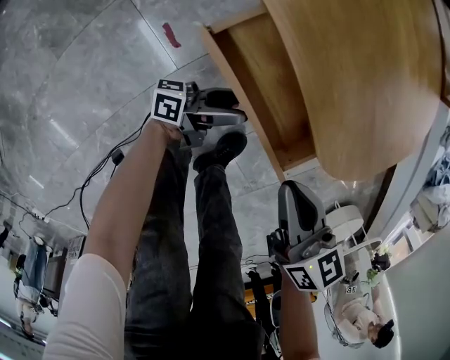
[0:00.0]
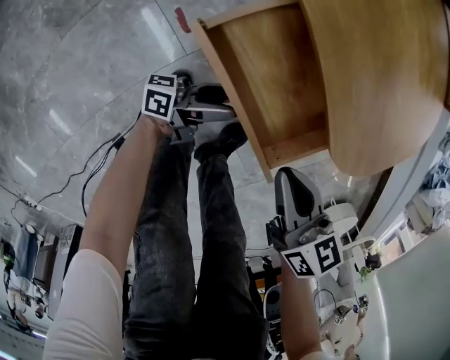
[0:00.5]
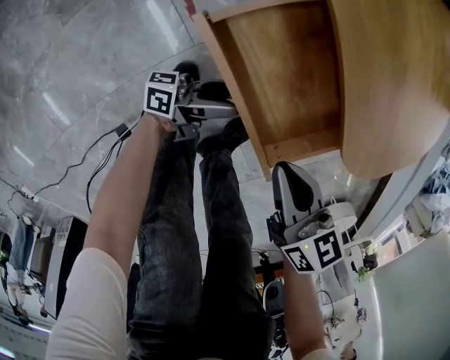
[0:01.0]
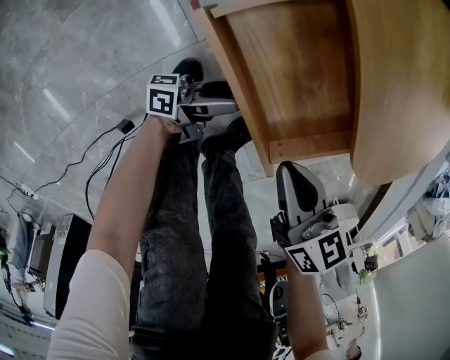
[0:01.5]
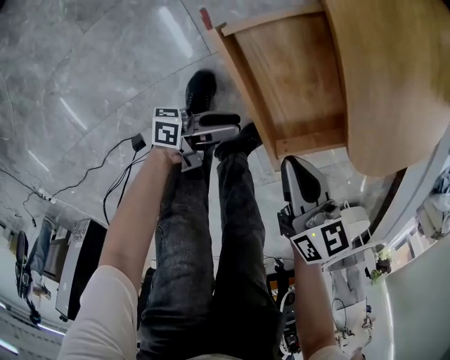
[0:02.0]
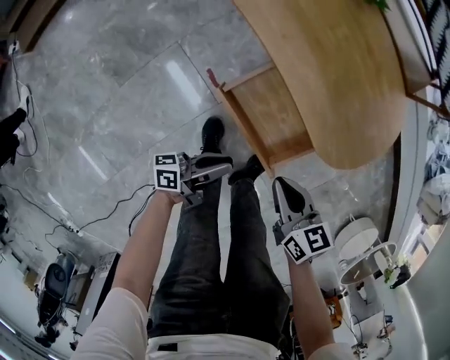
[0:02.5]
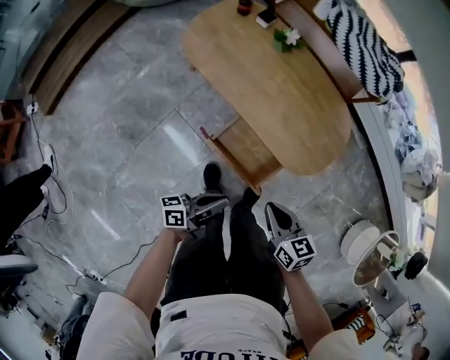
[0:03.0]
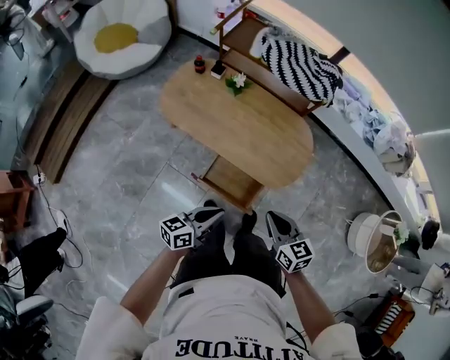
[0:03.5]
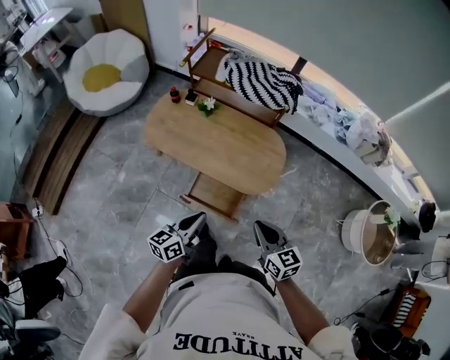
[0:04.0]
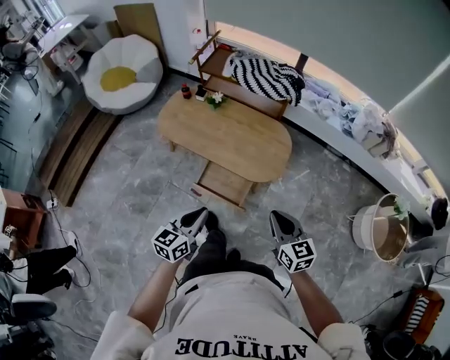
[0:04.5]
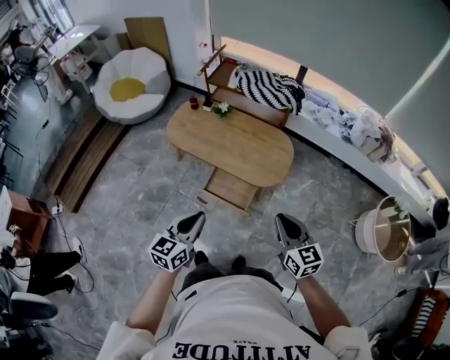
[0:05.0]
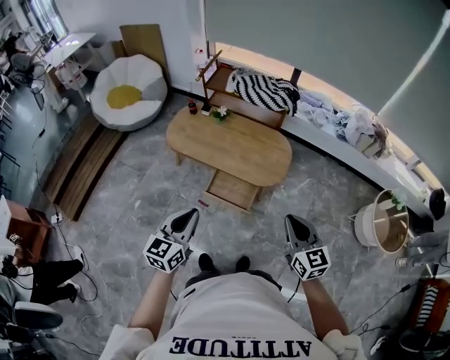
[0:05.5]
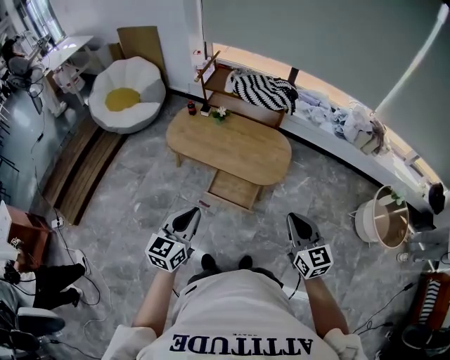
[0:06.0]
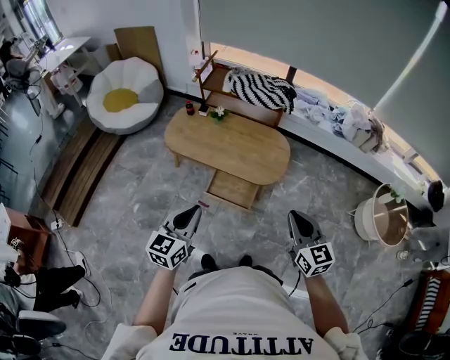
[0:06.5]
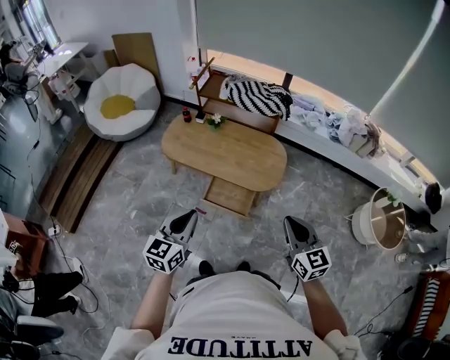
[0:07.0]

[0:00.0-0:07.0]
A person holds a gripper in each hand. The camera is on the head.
0:00.0 to 0:02.0: The left gripper is displaced backward and to the left by about 15 cm, and closes up, while the right gripper moves to the left, approximately 5 cm.
0:02.0 to 0:03.5: The grippers both shift upward by approximately 50 cm. The right gripper rotates some 30 degrees. Meanwhile the left gripper rotates around the line of its fingers by about 40 degrees, clockwise from behind, and closes.
0:03.5 to 0:05.0: The left gripper goes about 25 cm backward and upward, and swivels about 40 degrees, while the right gripper is displaced backward, upward and to the right by approximately 30 cm.
0:05.0 to 0:07.0: The left gripper goes approximately 5 cm to the left, while the right gripper moves roughly 5 cm.

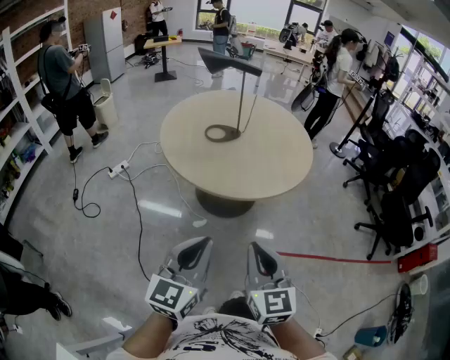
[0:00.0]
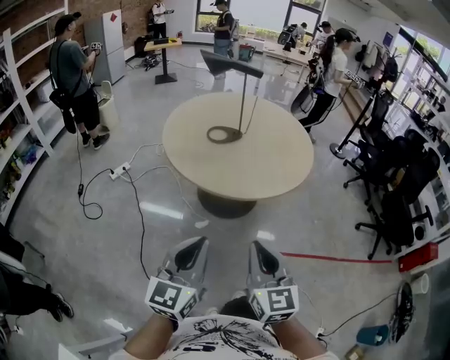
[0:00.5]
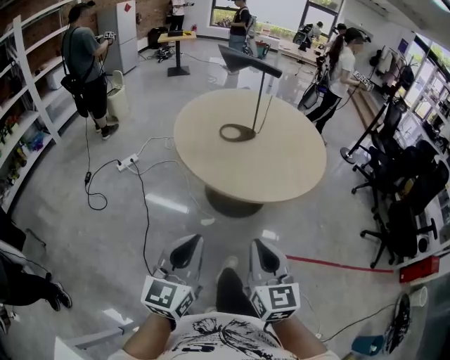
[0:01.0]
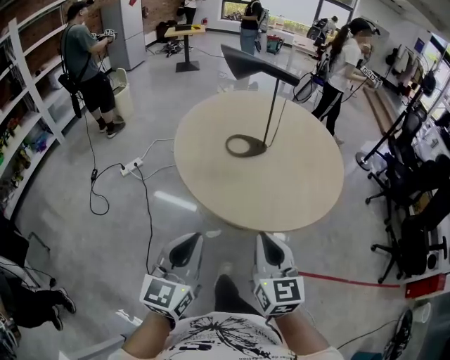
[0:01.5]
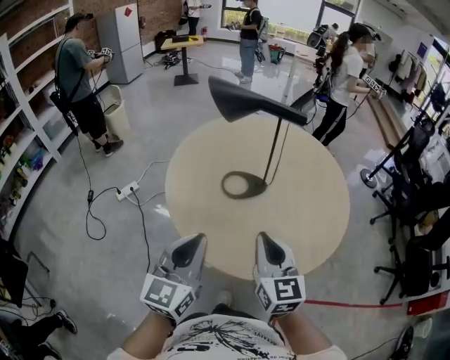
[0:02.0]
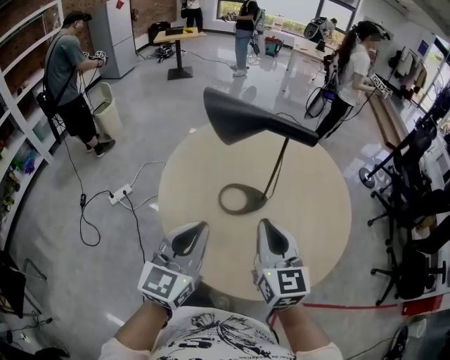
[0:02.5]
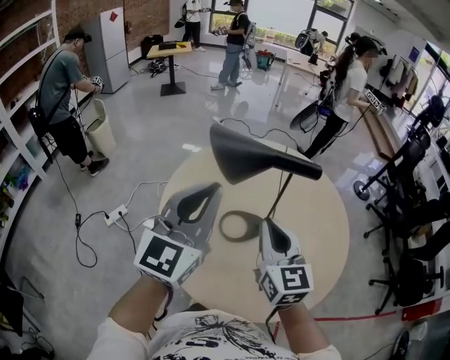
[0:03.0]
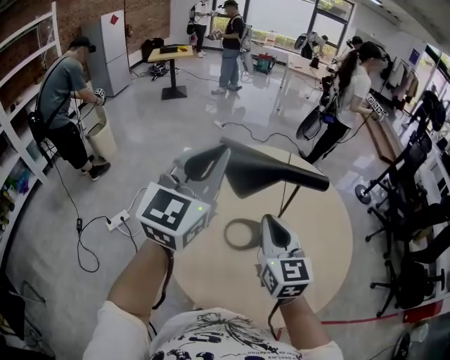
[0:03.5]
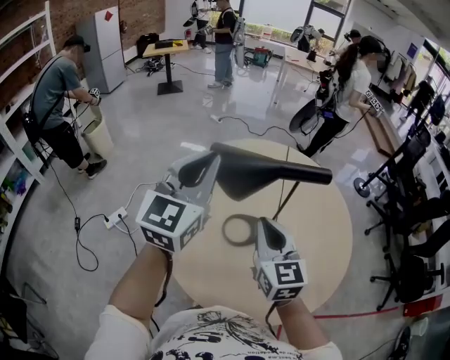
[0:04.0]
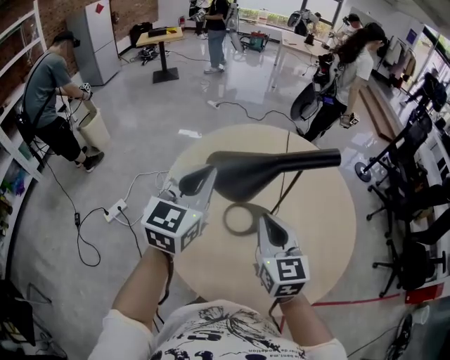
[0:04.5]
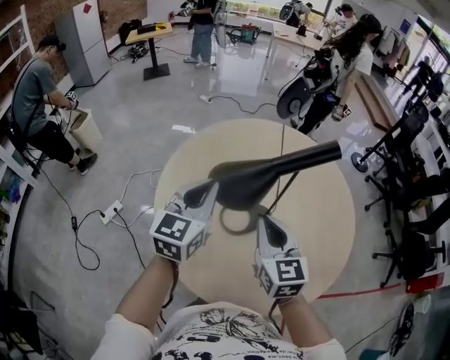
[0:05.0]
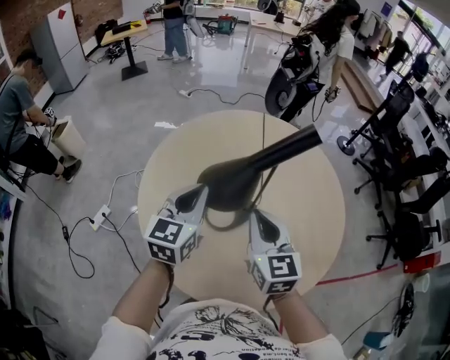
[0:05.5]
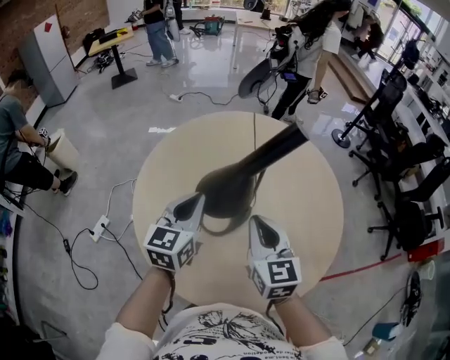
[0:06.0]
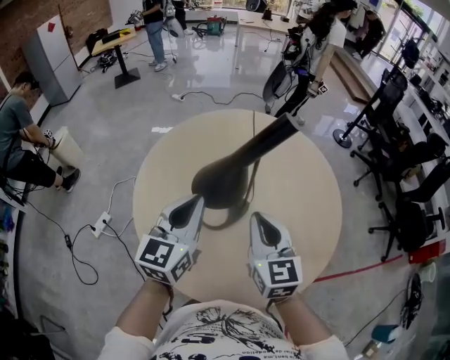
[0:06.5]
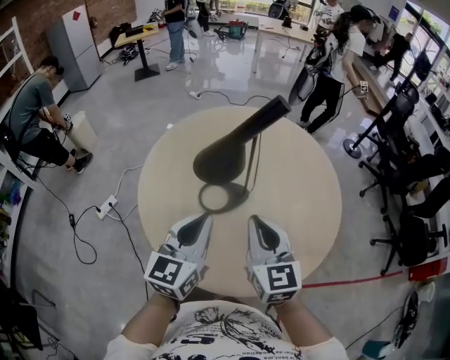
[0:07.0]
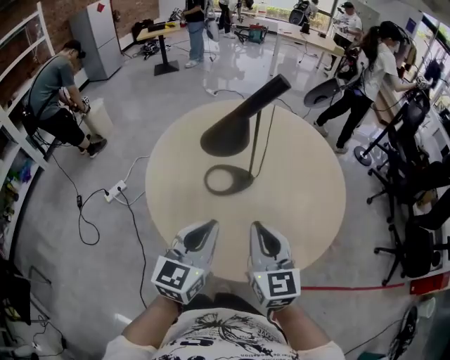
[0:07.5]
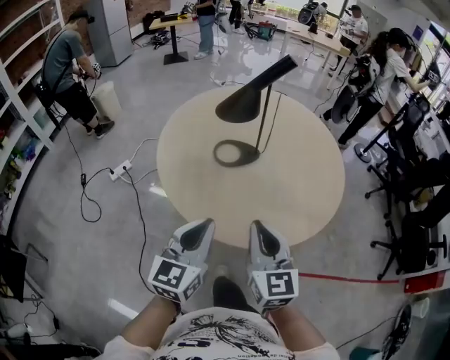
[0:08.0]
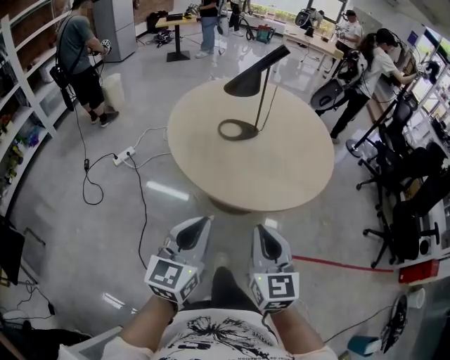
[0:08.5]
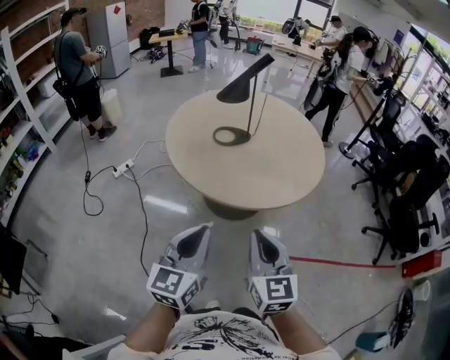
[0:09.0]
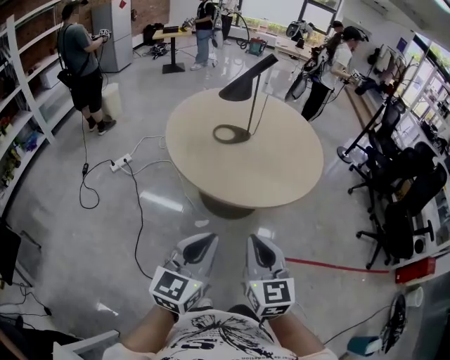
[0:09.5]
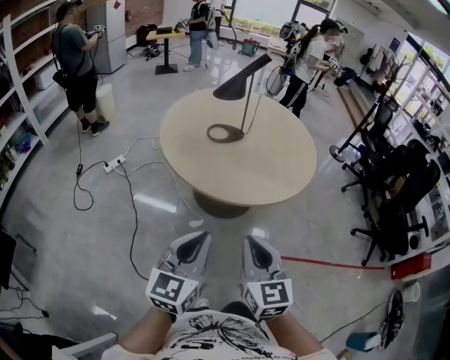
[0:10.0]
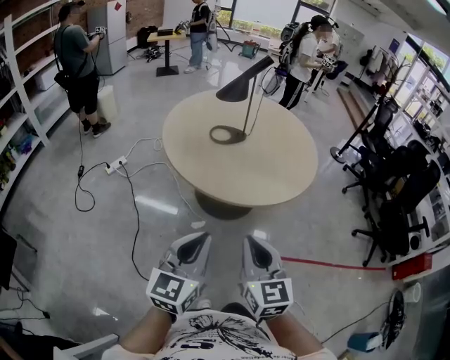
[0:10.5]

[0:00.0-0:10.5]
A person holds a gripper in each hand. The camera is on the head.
0:00.0 to 0:02.0: Both grippers move forward, about 30 cm.
0:02.0 to 0:04.0: The right gripper heads forward, covering roughly 20 cm. Meanwhile the left gripper travels forward and upward by roughly 35 cm.
0:04.0 to 0:06.5: The left gripper heads downward and to the right, covering about 15 cm. The right gripper shifts roughly 5 cm to the right.
0:06.5 to 0:08.5: Both grippers travel together backward, about 40 cm.
0:08.5 to 0:10.5: The grippers both shift backward by approximately 10 cm.

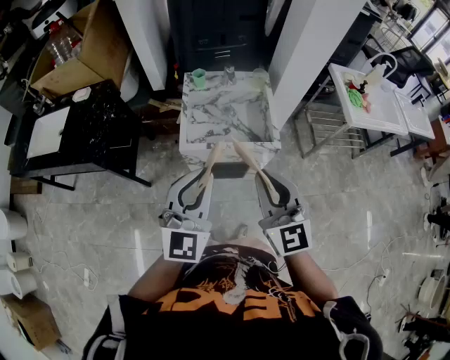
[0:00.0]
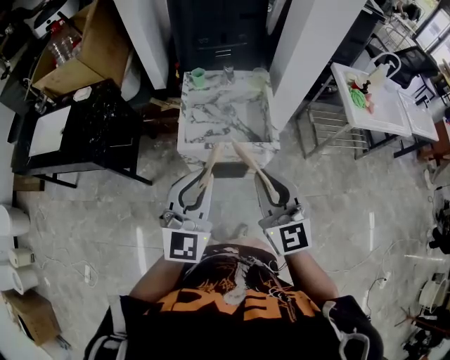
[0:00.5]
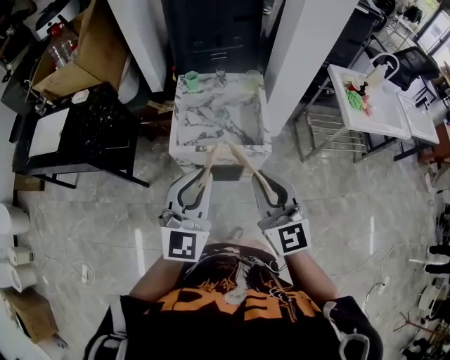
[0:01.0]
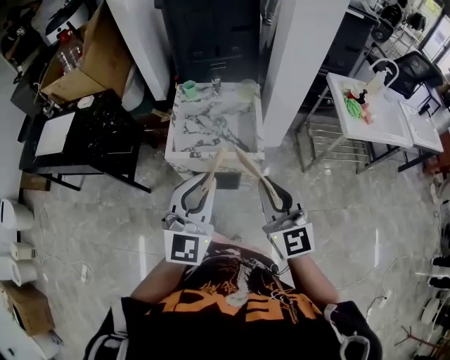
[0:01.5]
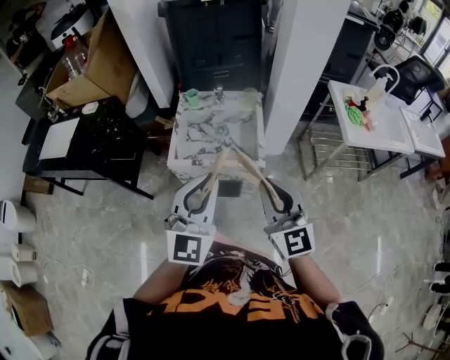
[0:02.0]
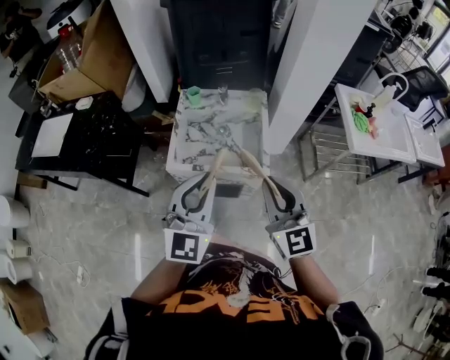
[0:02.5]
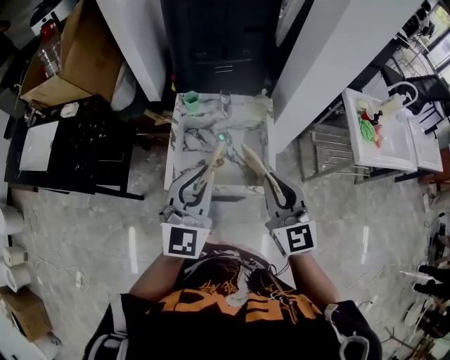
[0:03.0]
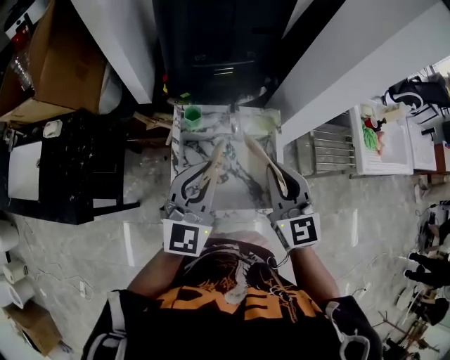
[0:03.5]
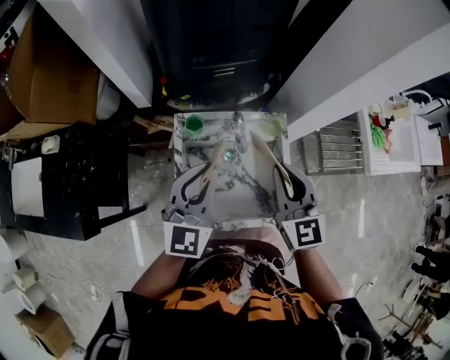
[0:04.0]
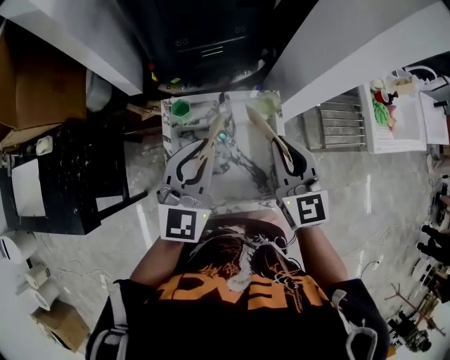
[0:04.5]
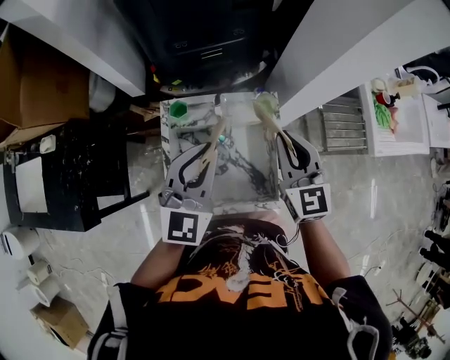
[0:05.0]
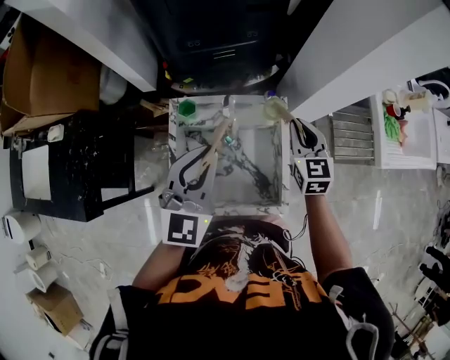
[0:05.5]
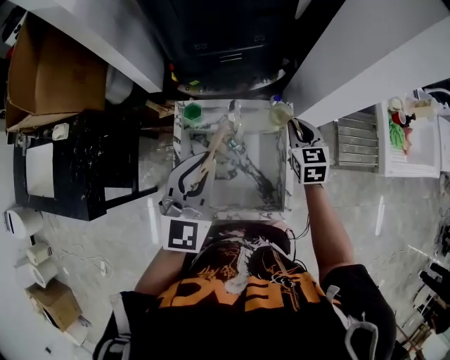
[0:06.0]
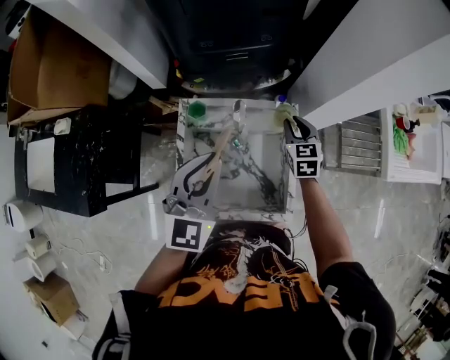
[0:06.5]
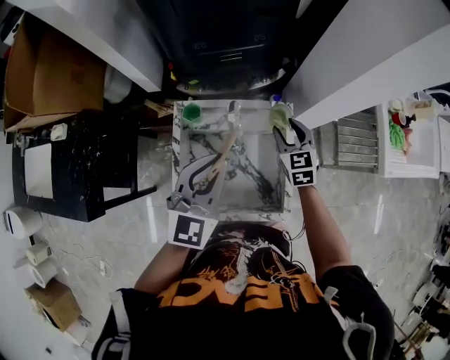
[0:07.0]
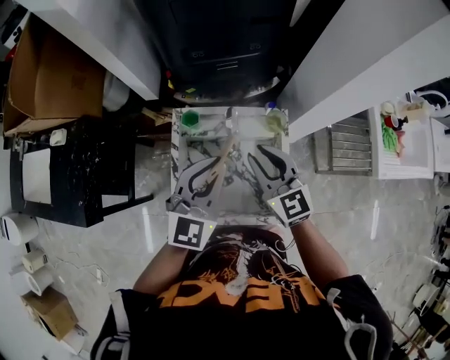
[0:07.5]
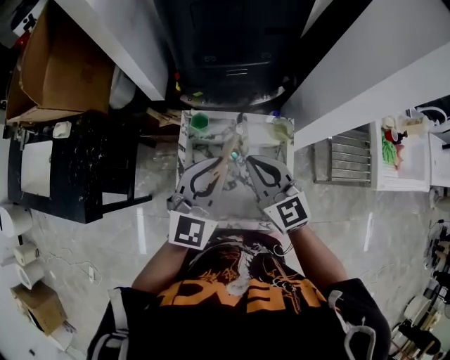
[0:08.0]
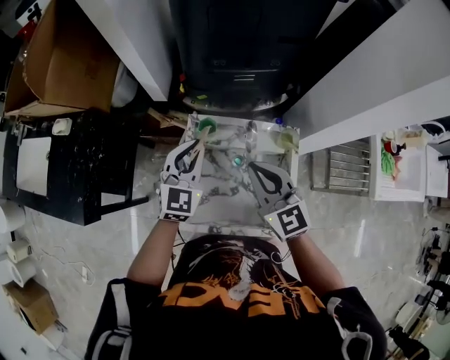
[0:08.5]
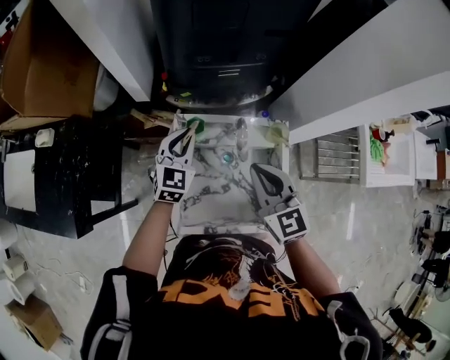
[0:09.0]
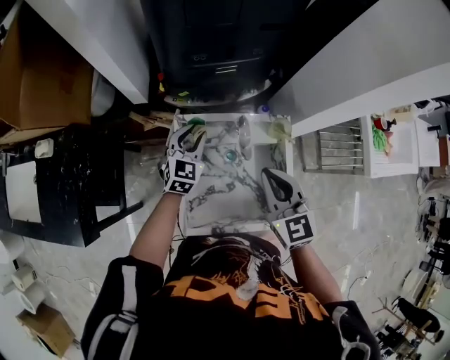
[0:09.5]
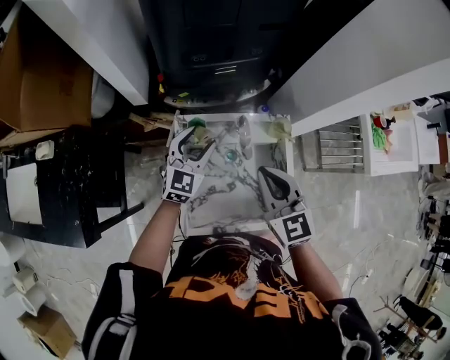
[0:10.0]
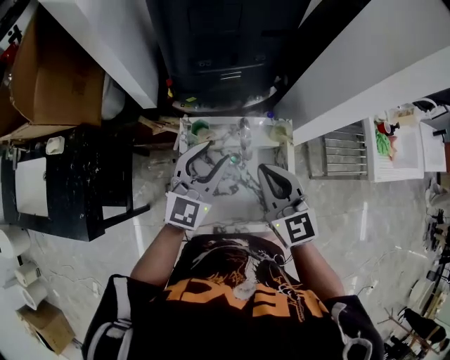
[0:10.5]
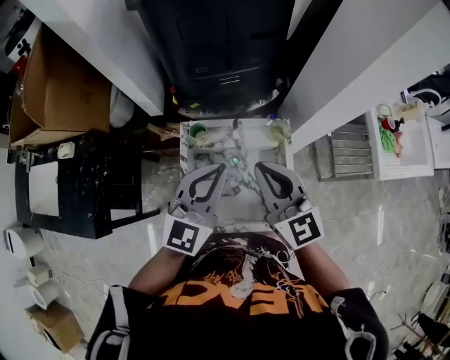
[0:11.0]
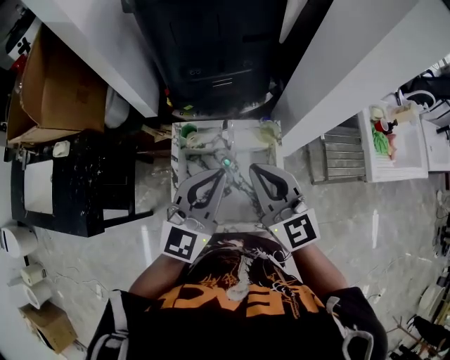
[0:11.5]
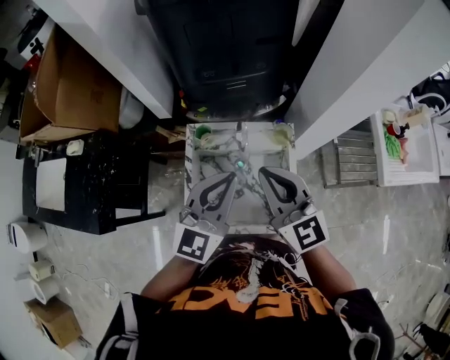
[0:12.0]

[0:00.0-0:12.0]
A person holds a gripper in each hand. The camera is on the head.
0:00.0 to 0:02.0: Both grippers travel together to the right, some 15 cm.
0:02.0 to 0:04.0: Both grippers are carried forward, approximately 40 cm.
0:04.0 to 0:06.0: The left gripper ends up approximately 5 cm from where it was. The right gripper heads downward, forward and to the right, covering some 25 cm, and rotates roughly 20 degrees.
0:06.0 to 0:08.0: The right gripper is displaced to the left, upward and backward by some 25 cm, turns by about 30 degrees, and opens, then closes again.
0:08.0 to 0:10.0: The left gripper heads downward and forward, covering about 20 cm, and opens up.
0:10.0 to 0:12.0: The left gripper travels upward, backward and to the right by roughly 25 cm, and closes. Meanwhile the right gripper goes about 10 cm upward.
